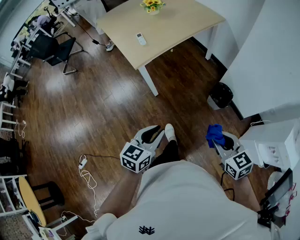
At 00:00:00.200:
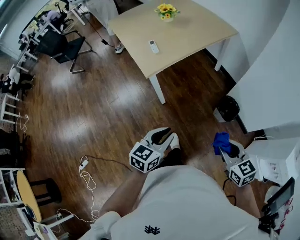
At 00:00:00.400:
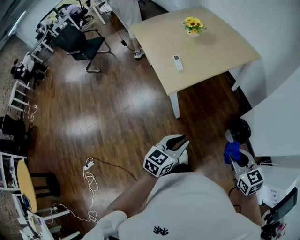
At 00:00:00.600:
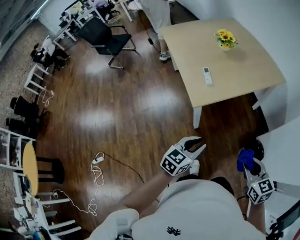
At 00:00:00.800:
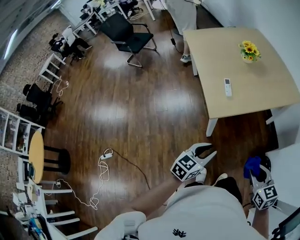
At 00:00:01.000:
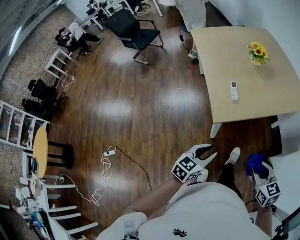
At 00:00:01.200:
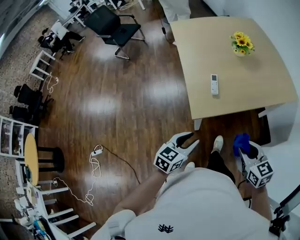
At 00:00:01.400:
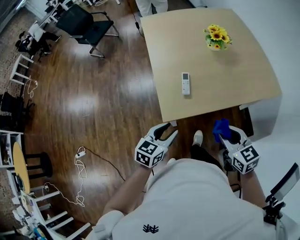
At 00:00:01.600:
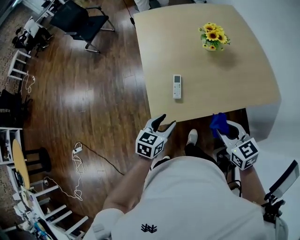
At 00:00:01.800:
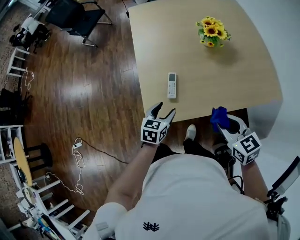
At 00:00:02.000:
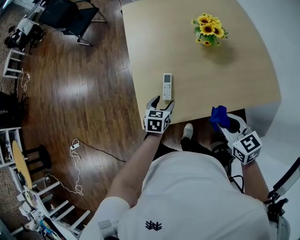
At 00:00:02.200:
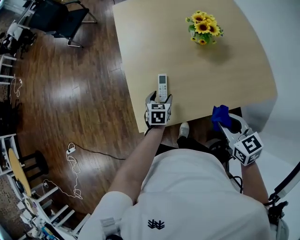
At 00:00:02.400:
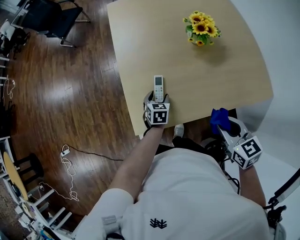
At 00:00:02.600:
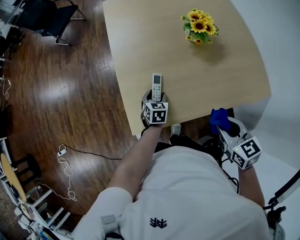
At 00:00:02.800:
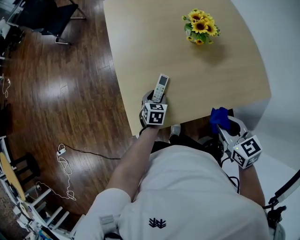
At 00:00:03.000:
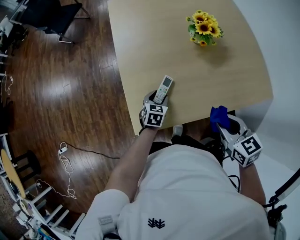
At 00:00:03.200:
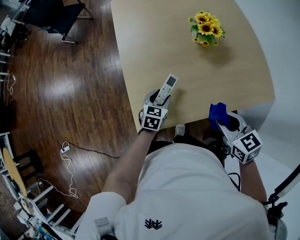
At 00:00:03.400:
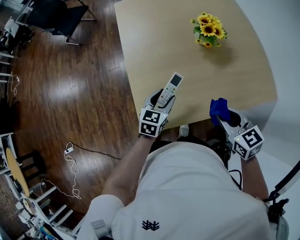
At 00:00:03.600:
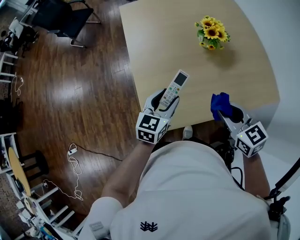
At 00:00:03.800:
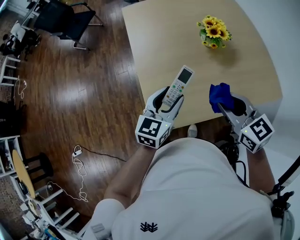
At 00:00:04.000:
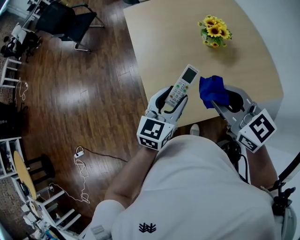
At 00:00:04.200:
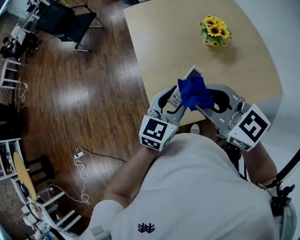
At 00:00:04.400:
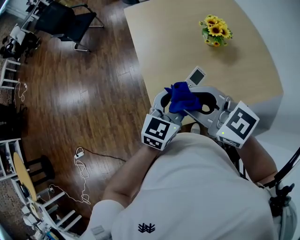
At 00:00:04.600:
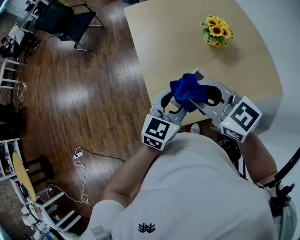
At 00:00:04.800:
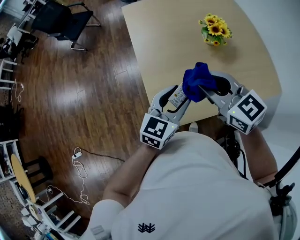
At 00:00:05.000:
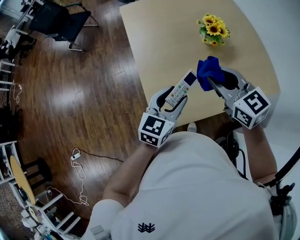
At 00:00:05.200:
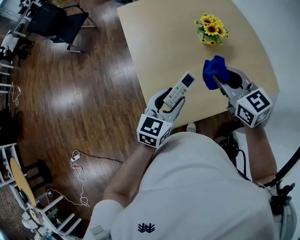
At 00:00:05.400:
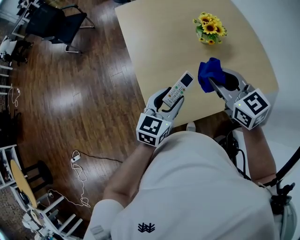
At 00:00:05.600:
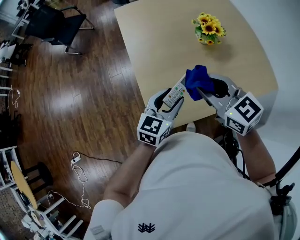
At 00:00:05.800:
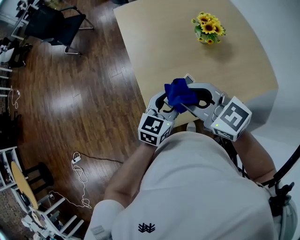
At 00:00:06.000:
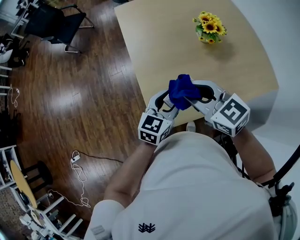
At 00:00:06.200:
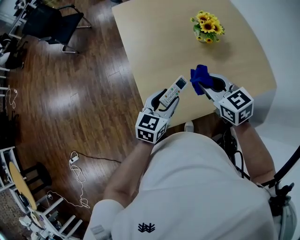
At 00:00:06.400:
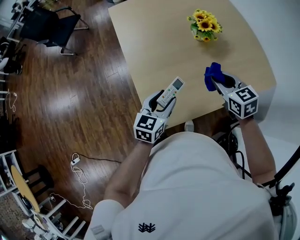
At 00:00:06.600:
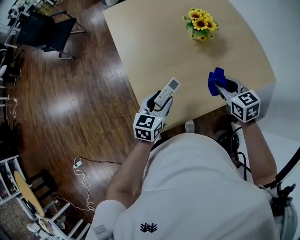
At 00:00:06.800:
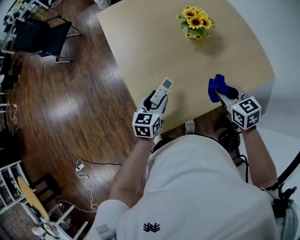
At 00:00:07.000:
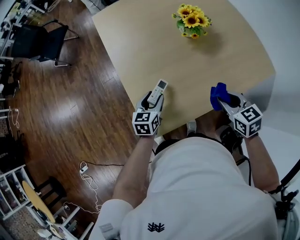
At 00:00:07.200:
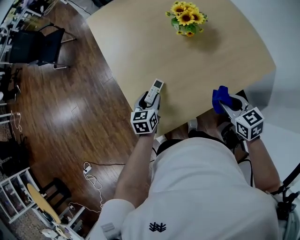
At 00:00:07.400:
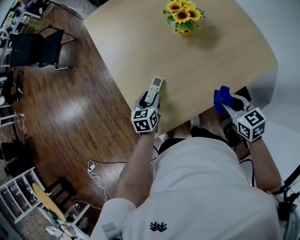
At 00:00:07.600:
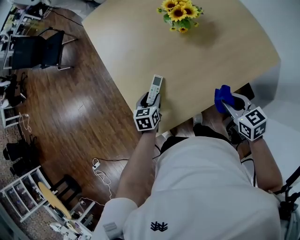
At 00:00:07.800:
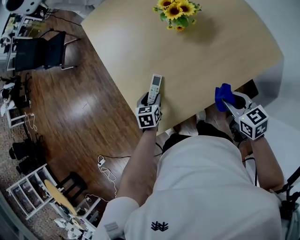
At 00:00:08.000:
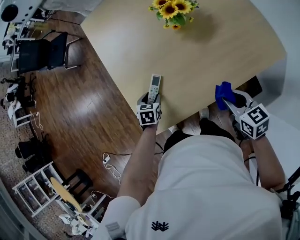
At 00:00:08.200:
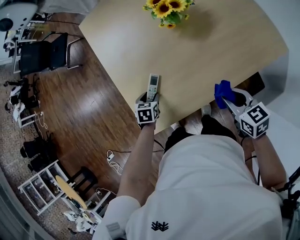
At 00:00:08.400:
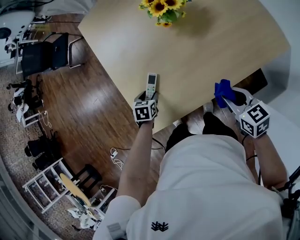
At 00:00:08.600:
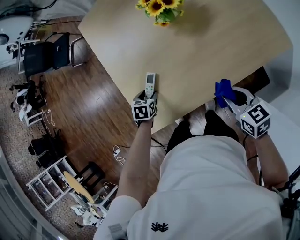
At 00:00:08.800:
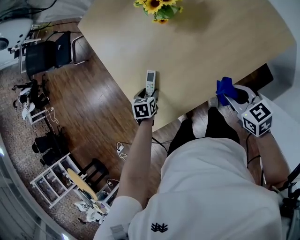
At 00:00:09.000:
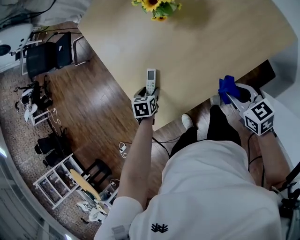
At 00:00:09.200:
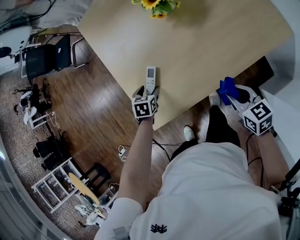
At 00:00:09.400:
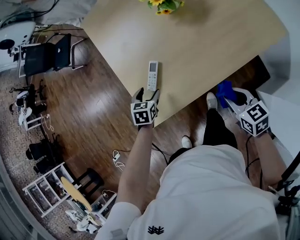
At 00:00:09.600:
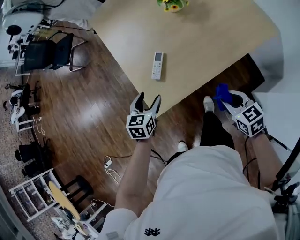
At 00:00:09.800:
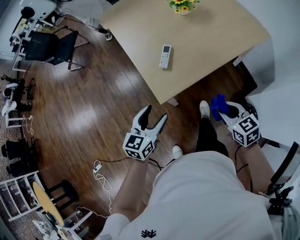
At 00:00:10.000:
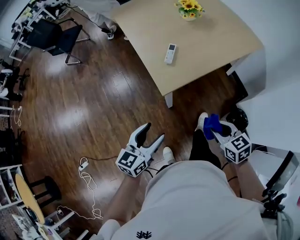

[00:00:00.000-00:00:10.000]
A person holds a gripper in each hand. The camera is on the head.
00:00:00.000 to 00:00:01.400: Both grippers travel together forward, roughly 40 cm. The right gripper rotates some 20 degrees.
00:00:01.400 to 00:00:02.800: The left gripper travels forward, downward and to the right by roughly 30 cm, and swivels approximately 30 degrees. The right gripper goes approximately 15 cm forward and to the right.
00:00:02.800 to 00:00:04.200: The right gripper is displaced to the left and upward by roughly 25 cm, and turns by some 40 degrees. Meanwhile the left gripper is displaced upward by some 30 cm, and points its fingers about 30 degrees further upward.
00:00:04.200 to 00:00:05.800: The right gripper goes left and right, approximately 15 cm each way, reversing 2 times, while the left gripper heads downward, covering some 5 cm.
00:00:05.800 to 00:00:07.200: The right gripper moves to the right and downward, approximately 30 cm, and rotates approximately 40 degrees. Meanwhile the left gripper is displaced downward by about 15 cm, and turns by some 20 degrees.
00:00:07.200 to 00:00:08.600: The left gripper shifts roughly 5 cm downward, and tips its fingers downward by about 30 degrees; the right gripper goes approximately 5 cm to the right.
00:00:08.600 to 00:00:10.000: The right gripper moves backward and to the left, roughly 35 cm. The left gripper travels backward and upward by approximately 40 cm, and tilts its fingers approximately 50 degrees upward.

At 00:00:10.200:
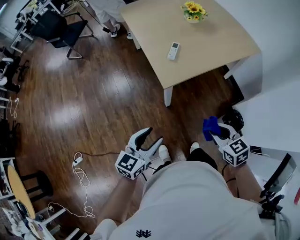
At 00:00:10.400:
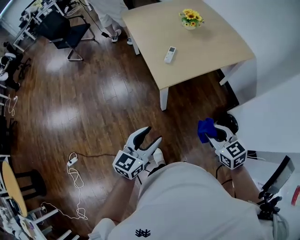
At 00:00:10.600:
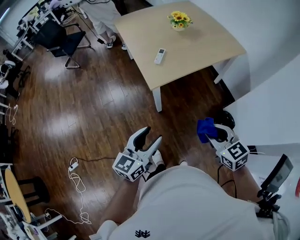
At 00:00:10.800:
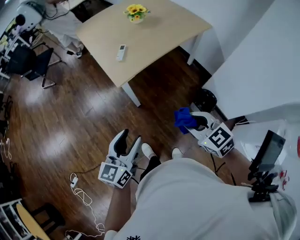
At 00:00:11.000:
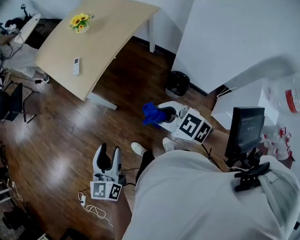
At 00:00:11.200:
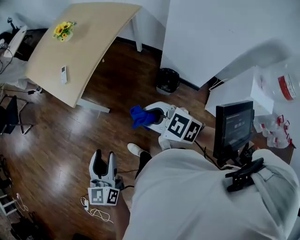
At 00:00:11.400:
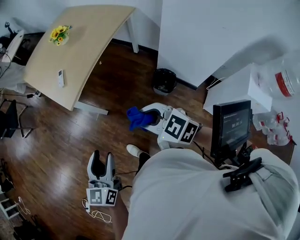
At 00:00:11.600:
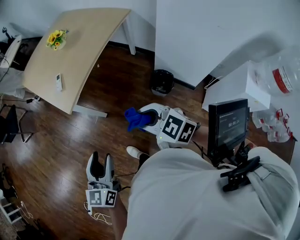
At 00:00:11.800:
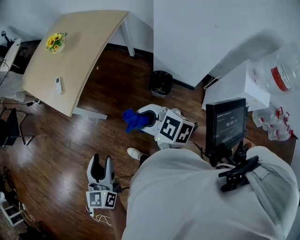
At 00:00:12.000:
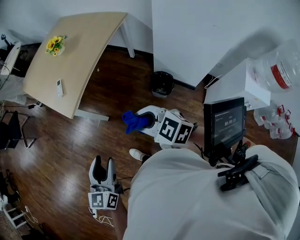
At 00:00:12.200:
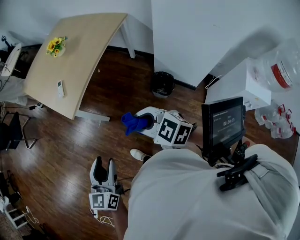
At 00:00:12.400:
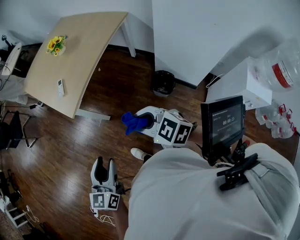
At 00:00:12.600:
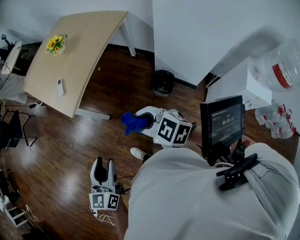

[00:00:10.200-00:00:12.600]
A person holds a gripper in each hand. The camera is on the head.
00:00:10.200 to 00:00:11.400: The right gripper travels backward, upward and to the right by approximately 15 cm. The left gripper travels to the right, backward and upward by some 20 cm.
00:00:11.400 to 00:00:12.600: Both grippers stay put.

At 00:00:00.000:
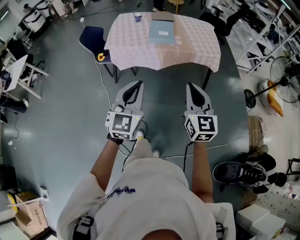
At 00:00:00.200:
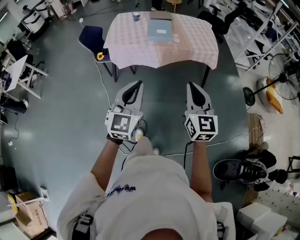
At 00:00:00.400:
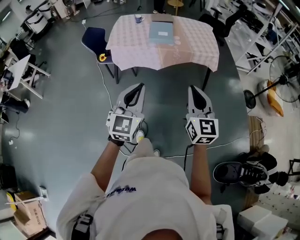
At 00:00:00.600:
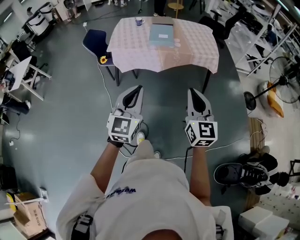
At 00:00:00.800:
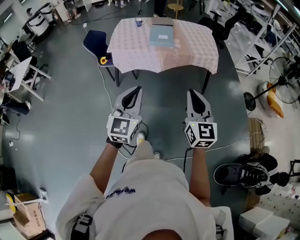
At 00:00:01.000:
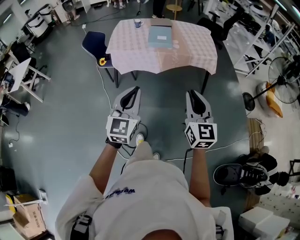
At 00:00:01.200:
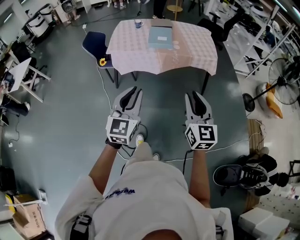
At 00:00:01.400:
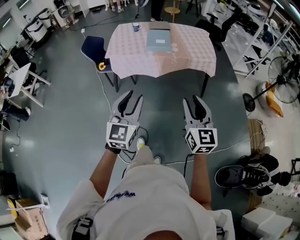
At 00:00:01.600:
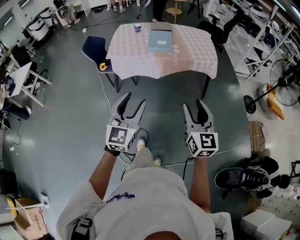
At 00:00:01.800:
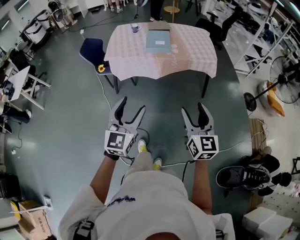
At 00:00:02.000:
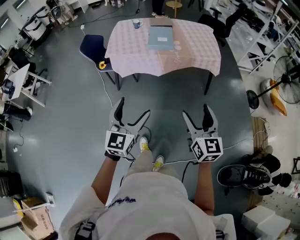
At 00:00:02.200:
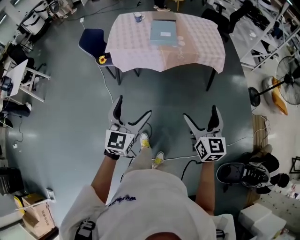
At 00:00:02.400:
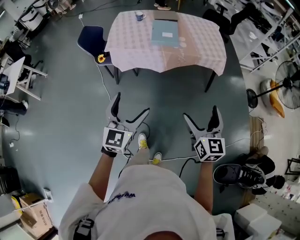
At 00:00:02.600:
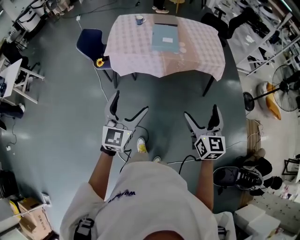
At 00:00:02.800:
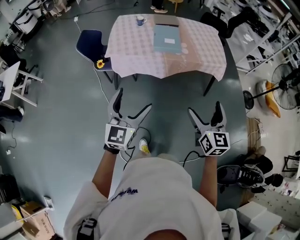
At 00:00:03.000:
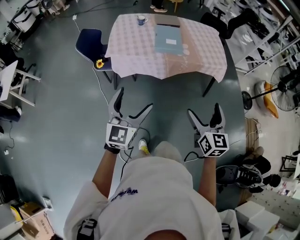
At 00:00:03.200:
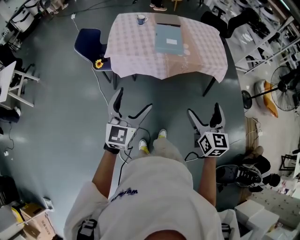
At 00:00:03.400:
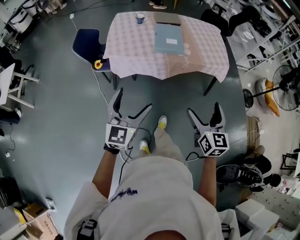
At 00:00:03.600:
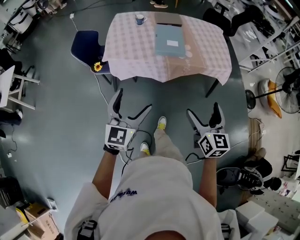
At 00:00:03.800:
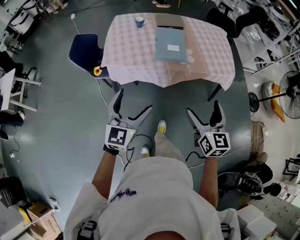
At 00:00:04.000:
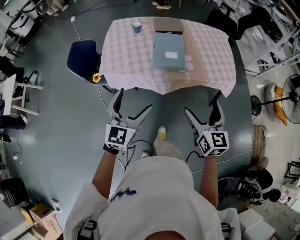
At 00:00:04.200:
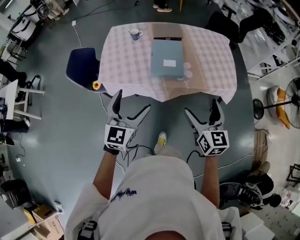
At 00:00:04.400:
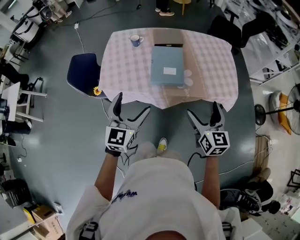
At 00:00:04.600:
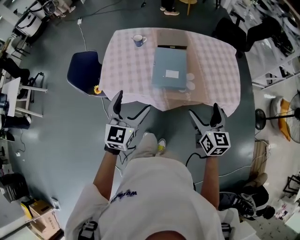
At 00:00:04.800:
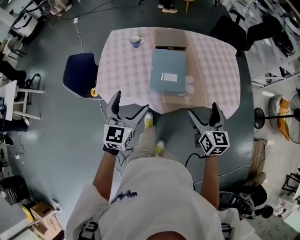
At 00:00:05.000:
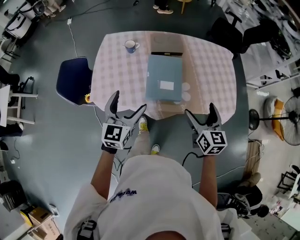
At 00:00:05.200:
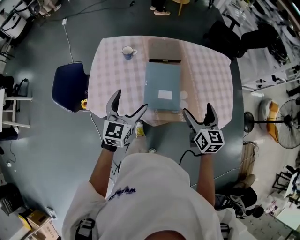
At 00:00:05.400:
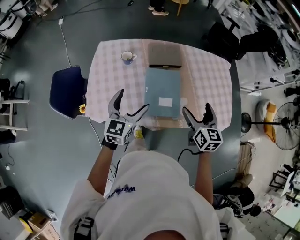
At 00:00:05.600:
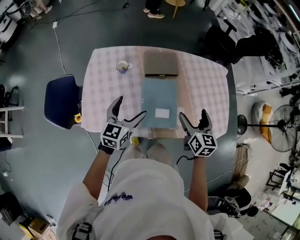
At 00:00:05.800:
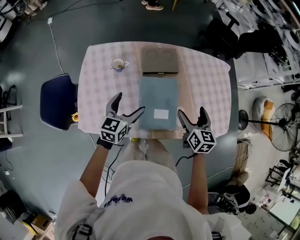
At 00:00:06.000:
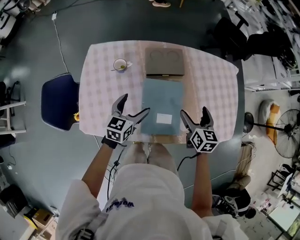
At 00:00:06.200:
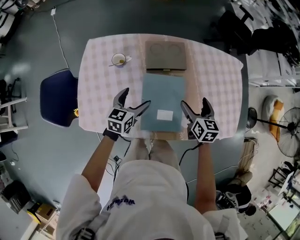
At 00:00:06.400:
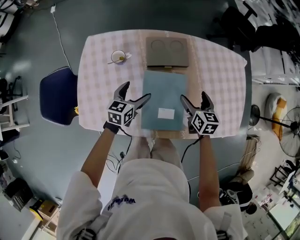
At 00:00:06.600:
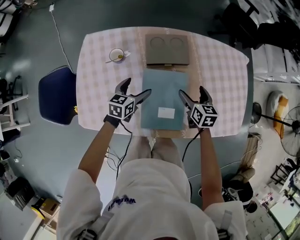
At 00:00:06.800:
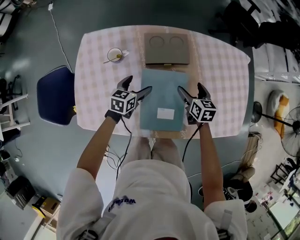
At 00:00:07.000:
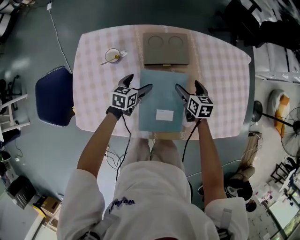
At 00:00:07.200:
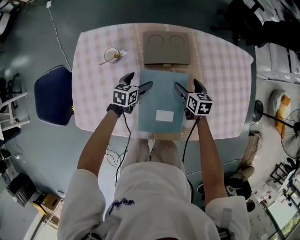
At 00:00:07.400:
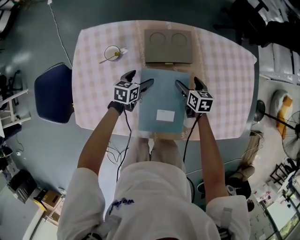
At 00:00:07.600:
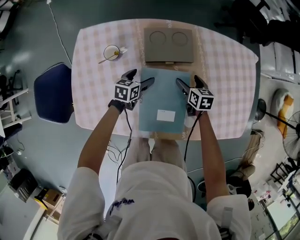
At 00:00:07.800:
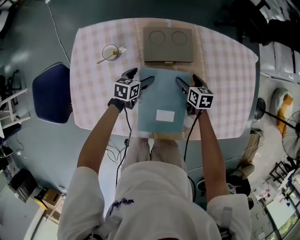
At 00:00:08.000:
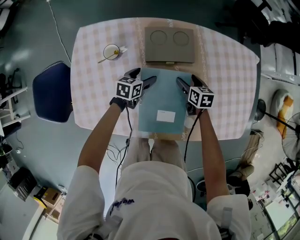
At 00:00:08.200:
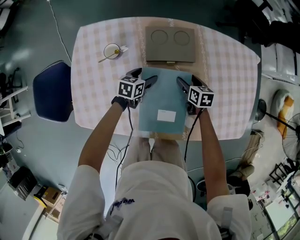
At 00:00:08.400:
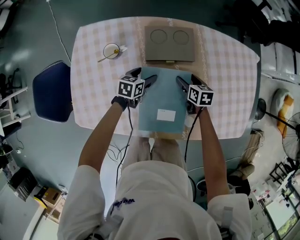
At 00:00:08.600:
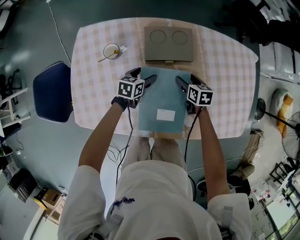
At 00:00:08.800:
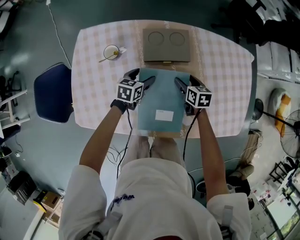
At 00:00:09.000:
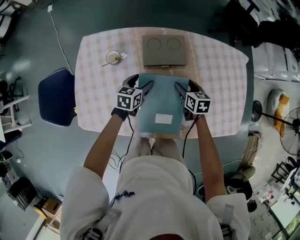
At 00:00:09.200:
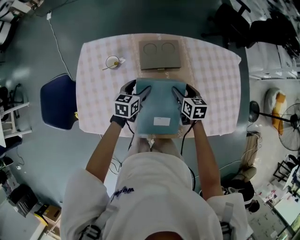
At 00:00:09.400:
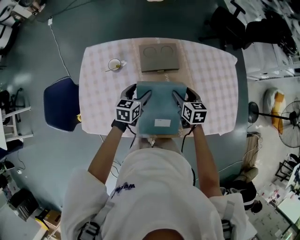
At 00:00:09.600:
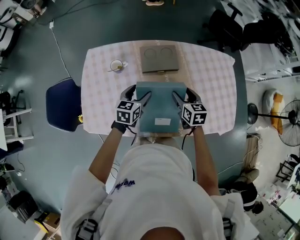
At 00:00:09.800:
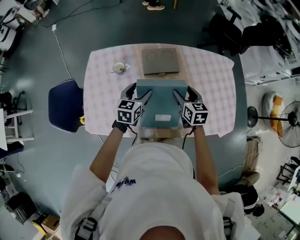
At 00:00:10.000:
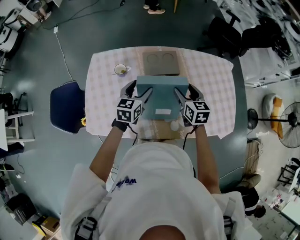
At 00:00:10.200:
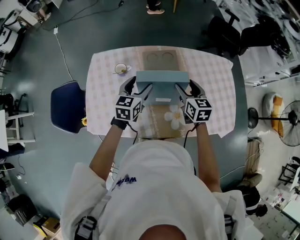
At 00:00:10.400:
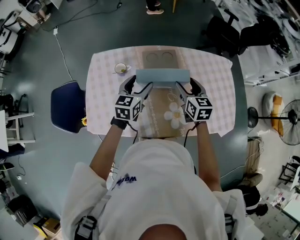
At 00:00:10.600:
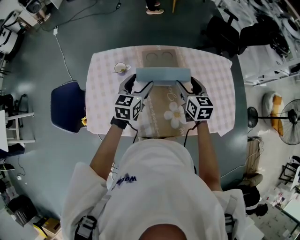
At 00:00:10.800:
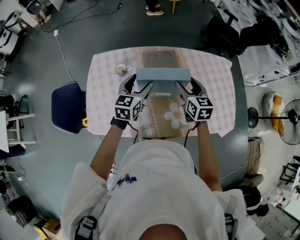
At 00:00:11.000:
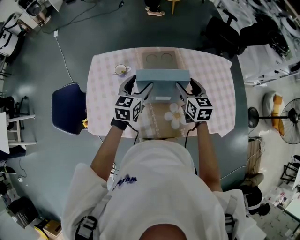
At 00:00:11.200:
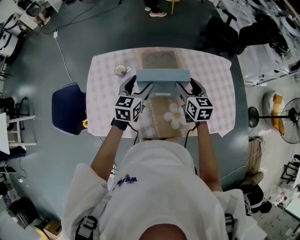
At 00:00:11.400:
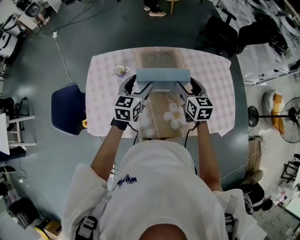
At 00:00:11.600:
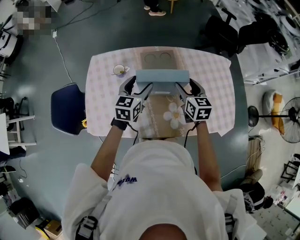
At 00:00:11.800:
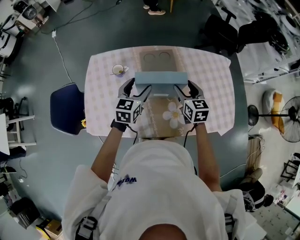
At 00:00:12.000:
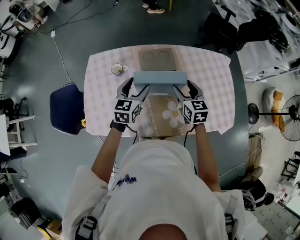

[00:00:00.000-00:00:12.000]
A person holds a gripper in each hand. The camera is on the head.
00:00:00.000 to 00:00:01.600: The left gripper opens; the right gripper travels backward by roughly 5 cm, and opens up.
00:00:01.600 to 00:00:03.000: The grippers both shift forward and to the left by roughly 20 cm. The right gripper opens up. The left gripper opens.
00:00:03.000 to 00:00:04.400: Both grippers travel together forward, about 35 cm.
00:00:04.400 to 00:00:06.000: The left gripper shifts about 40 cm forward and downward, and swivels approximately 30 degrees. Meanwhile the right gripper shifts some 35 cm forward.
00:00:06.000 to 00:00:07.600: The two grippers go about 25 cm downward and forward. The left gripper turns by about 20 degrees.
00:00:07.600 to 00:00:09.000: Both grippers move upward, approximately 5 cm.
00:00:09.000 to 00:00:10.400: The grippers both shift upward by some 20 cm. The left gripper changes its angle by roughly 20 degrees. Meanwhile the right gripper turns by some 20 degrees.
00:00:10.400 to 00:00:12.000: There are only small adjustments of the grippers.
